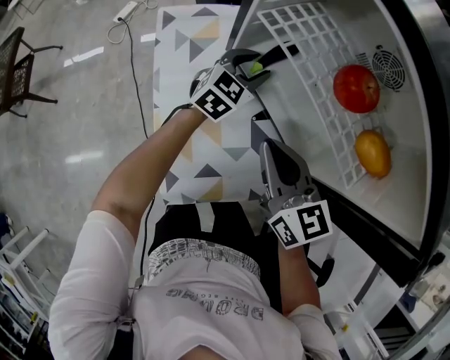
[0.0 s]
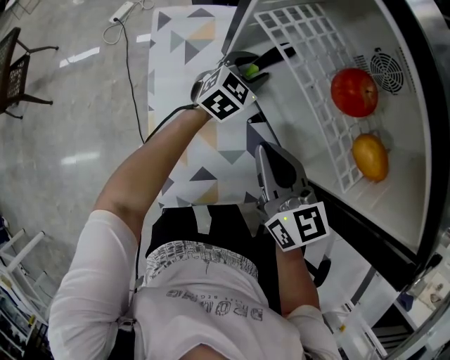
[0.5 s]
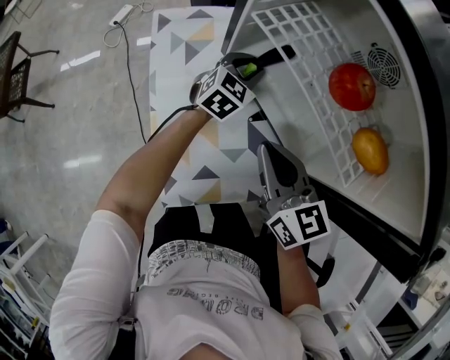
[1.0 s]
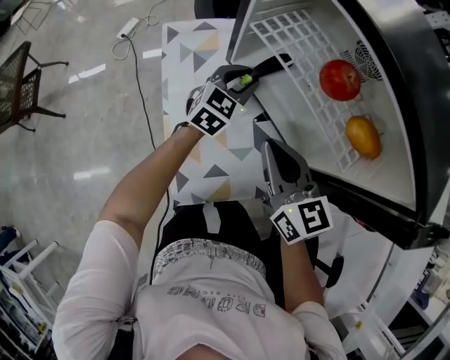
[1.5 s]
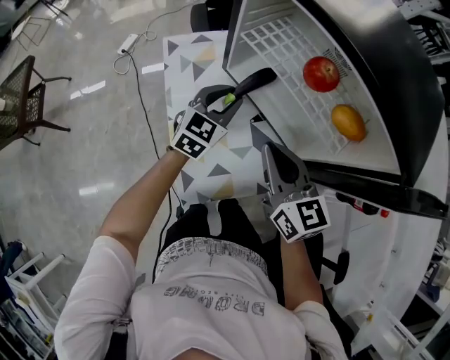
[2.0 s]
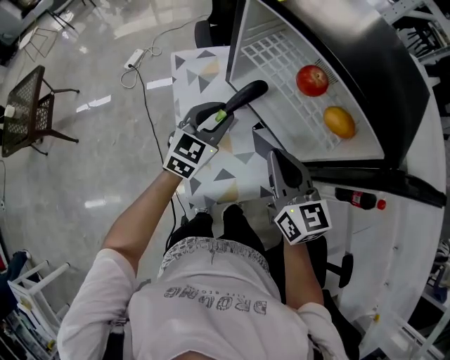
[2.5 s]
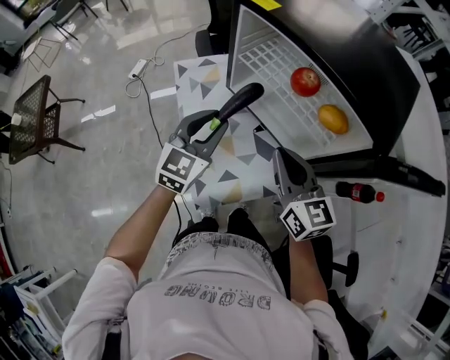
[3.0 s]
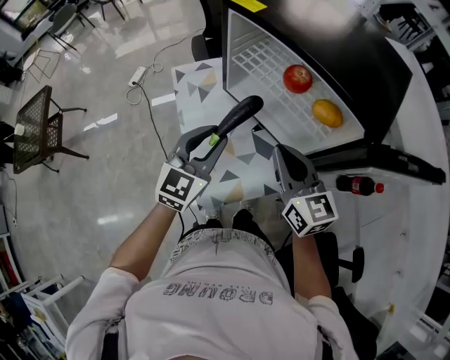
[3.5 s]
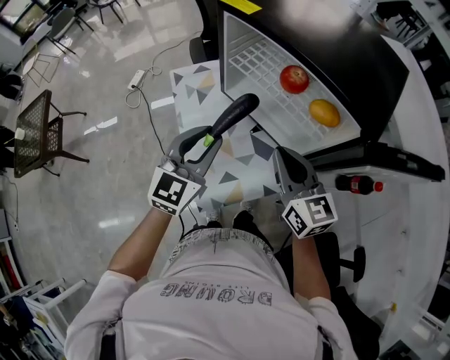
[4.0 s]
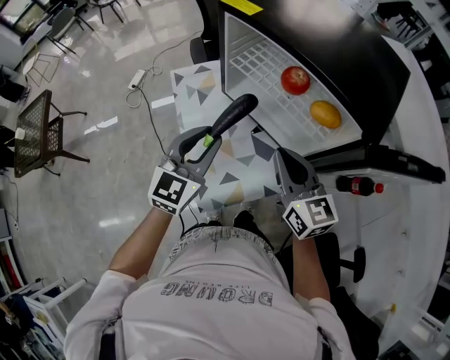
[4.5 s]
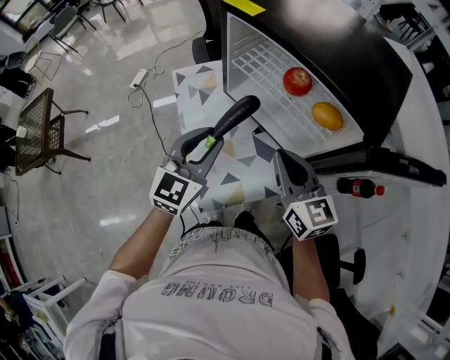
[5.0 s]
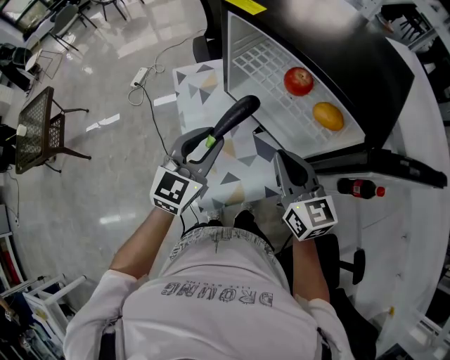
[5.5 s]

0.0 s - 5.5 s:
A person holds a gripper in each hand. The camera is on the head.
0.0 s - 2.0 s: The left gripper is displaced backward and upward by about 10 cm; the right gripper is displaced upward by about 5 cm.
2.0 s - 3.5 s: The left gripper goes approximately 20 cm upward and backward, while the right gripper goes approximately 5 cm upward.
3.5 s - 5.5 s: The grippers make only small movements.

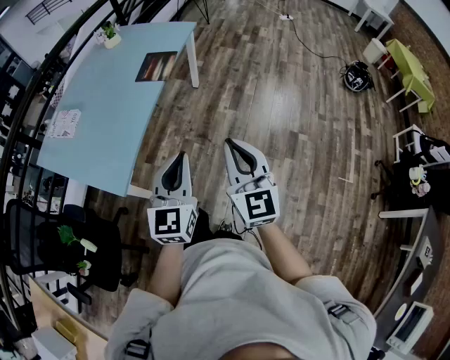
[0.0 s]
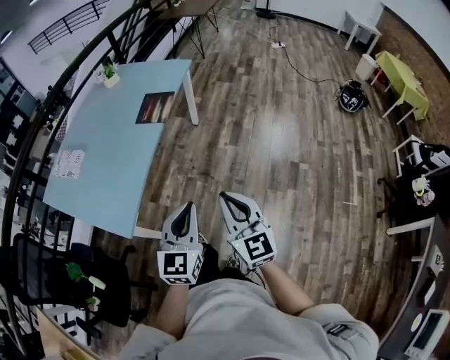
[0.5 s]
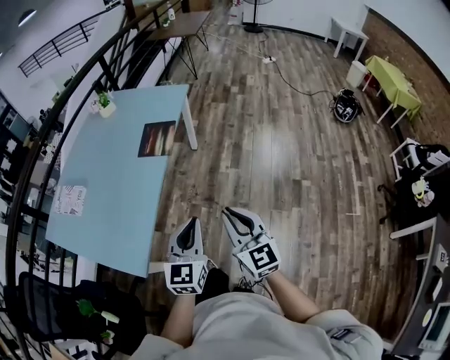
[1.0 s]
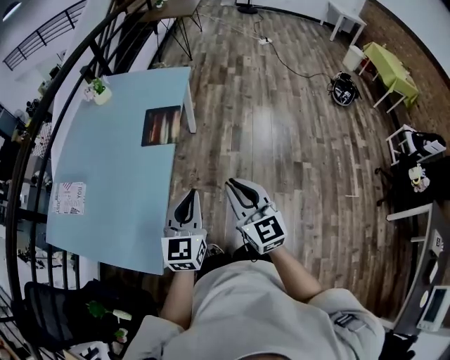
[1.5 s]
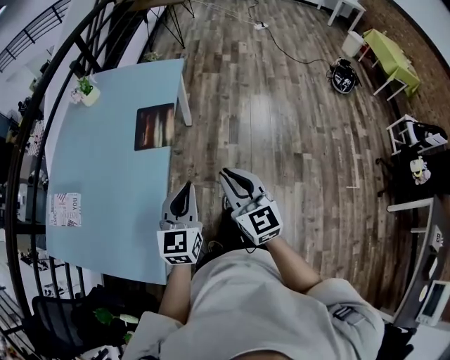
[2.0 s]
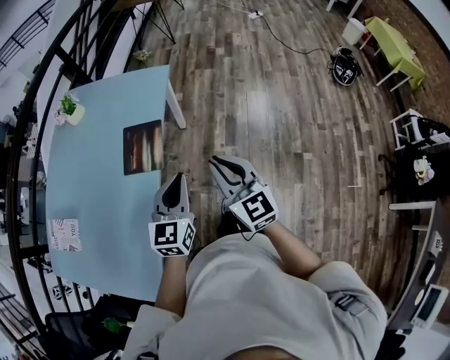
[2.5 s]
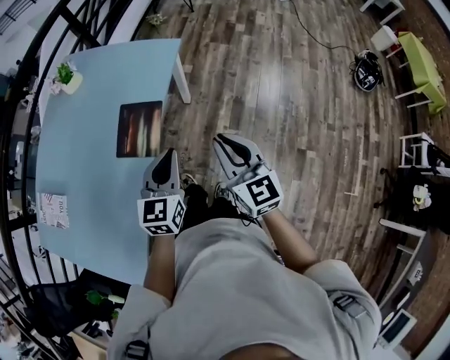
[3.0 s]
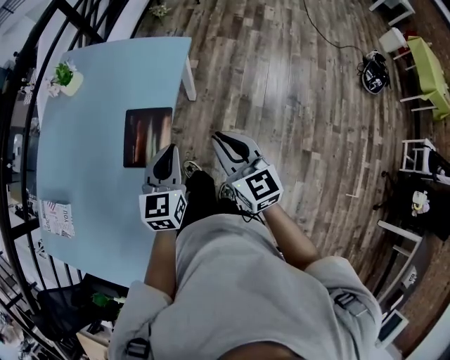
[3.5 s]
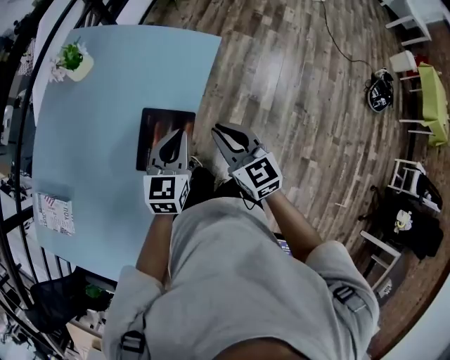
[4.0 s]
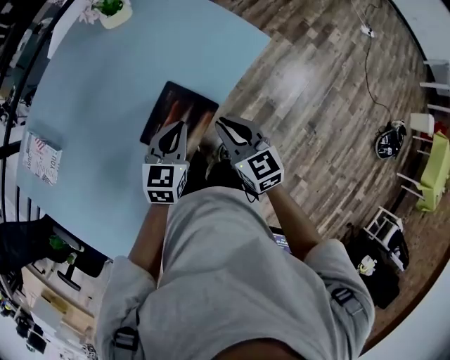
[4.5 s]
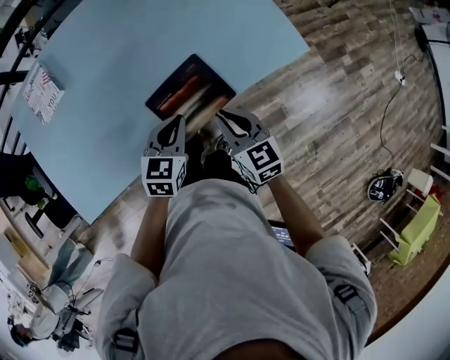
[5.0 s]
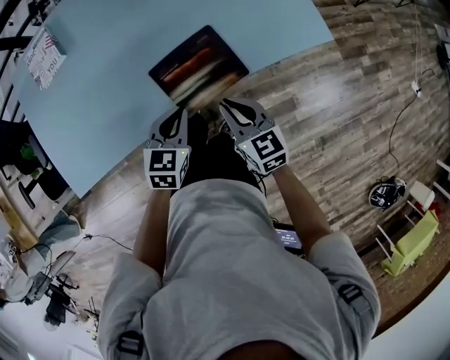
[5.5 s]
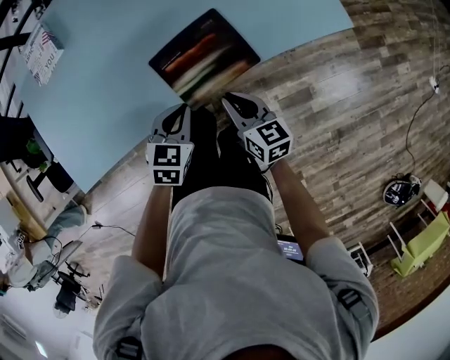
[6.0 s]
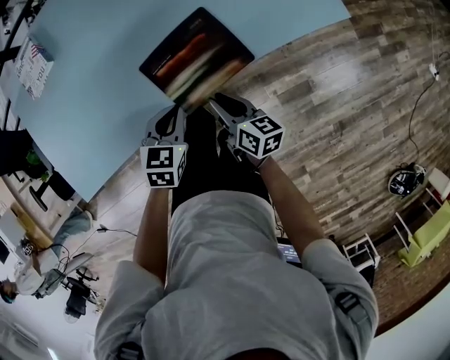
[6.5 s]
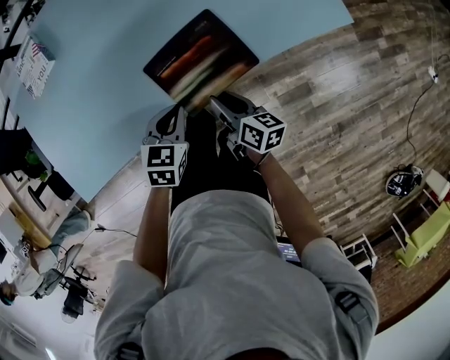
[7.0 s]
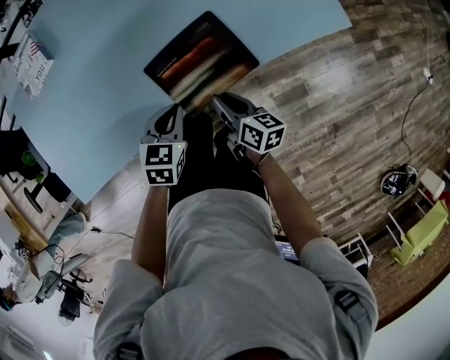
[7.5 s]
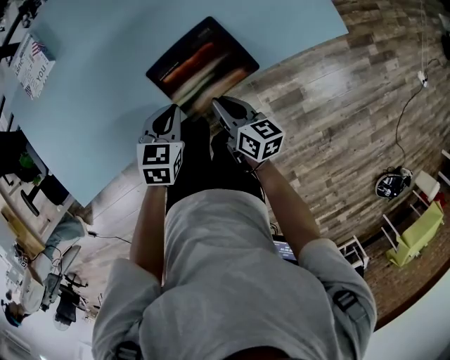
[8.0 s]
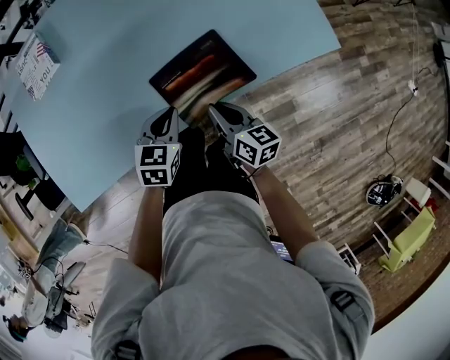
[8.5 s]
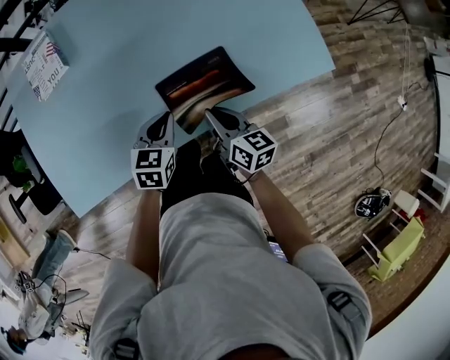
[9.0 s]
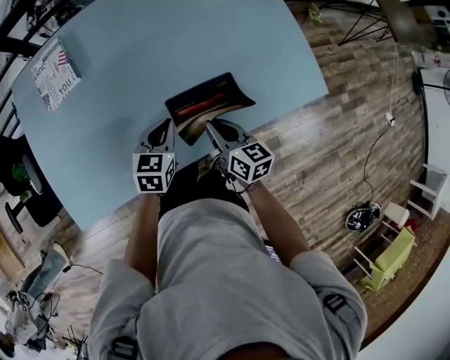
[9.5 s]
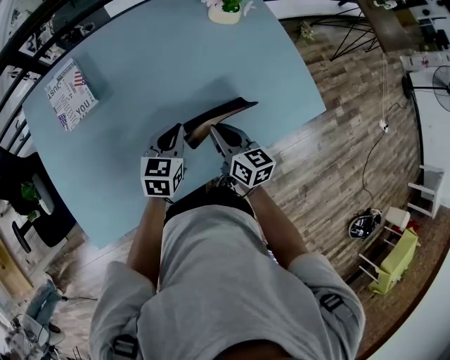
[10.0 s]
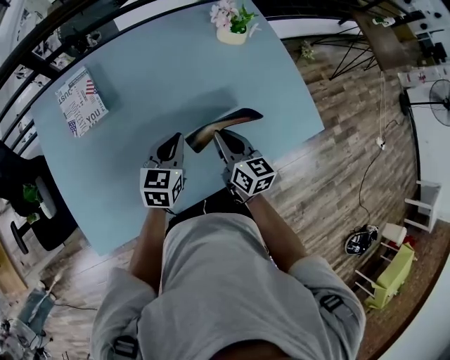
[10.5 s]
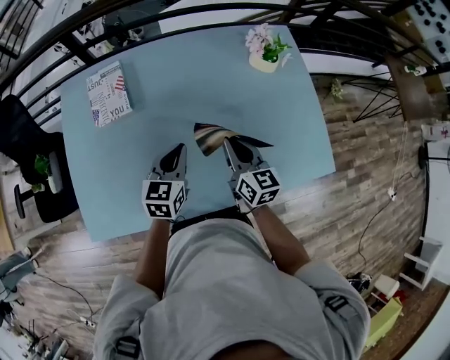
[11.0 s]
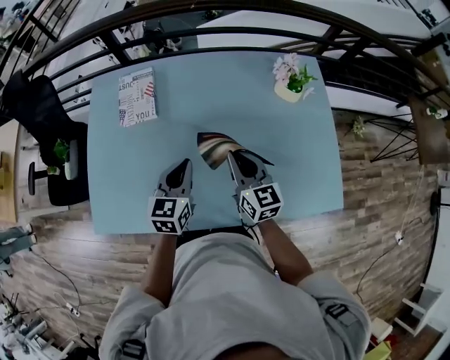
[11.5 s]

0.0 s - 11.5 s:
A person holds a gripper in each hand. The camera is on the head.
0.0 s - 2.0 s: The right gripper goes some 30 cm forward and to the left. Meanwhile the left gripper travels forward by roughly 25 cm.
2.0 s - 4.0 s: The two grippers travel together, forward, approximately 40 cm. The right gripper rotates some 20 degrees.
4.0 s - 6.0 s: Both grippers move downward, approximately 20 cm. The left gripper rotates some 40 degrees. Meanwhile the right gripper turns by some 50 degrees.
6.0 s - 7.5 s: The right gripper rotates roughly 20 degrees.
7.5 s - 9.5 s: The left gripper heads forward, to the left and upward, covering roughly 15 cm. Meanwhile the right gripper heads upward, forward and to the left, covering about 15 cm, and rotates approximately 20 degrees.
9.5 s - 11.5 s: The right gripper goes about 20 cm forward, upward and to the left, and swivels roughly 30 degrees, while the left gripper travels upward, to the left and forward by about 15 cm, and rotates approximately 30 degrees.

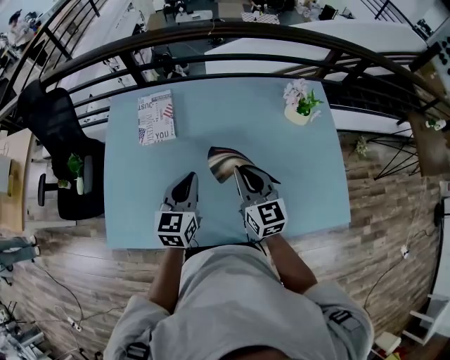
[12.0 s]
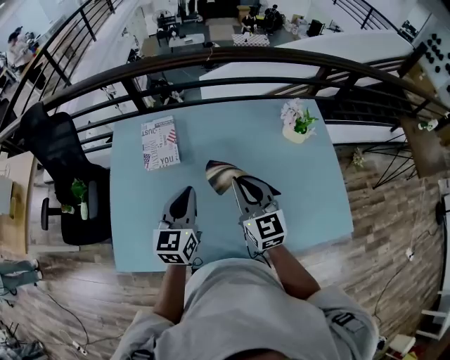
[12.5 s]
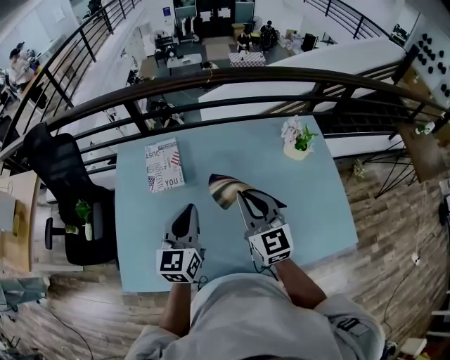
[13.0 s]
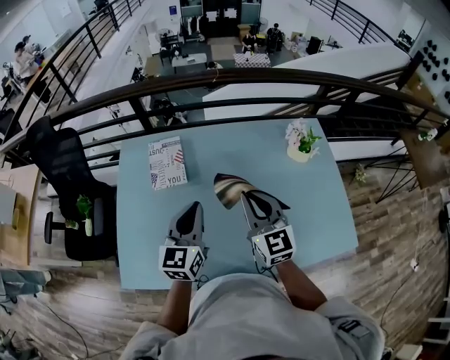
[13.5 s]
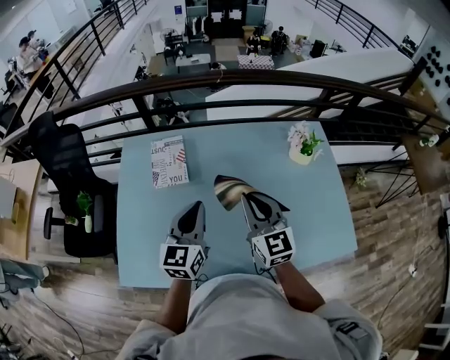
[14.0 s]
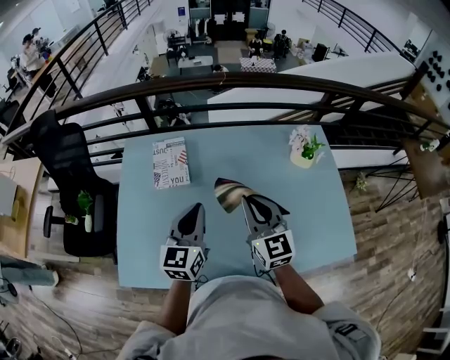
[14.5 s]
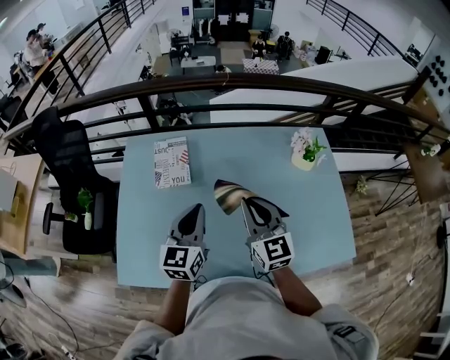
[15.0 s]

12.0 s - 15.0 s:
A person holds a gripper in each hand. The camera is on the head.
12.0 s - 13.5 s: Both grippers travel together upward, approximately 5 cm.
13.5 s - 15.0 s: Both grippers stay put.

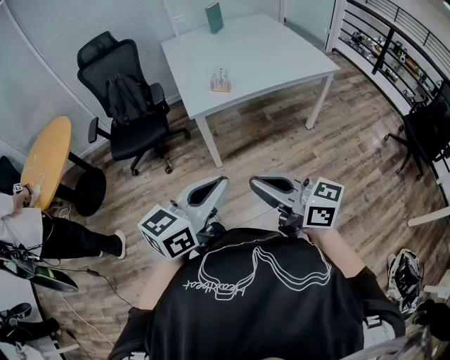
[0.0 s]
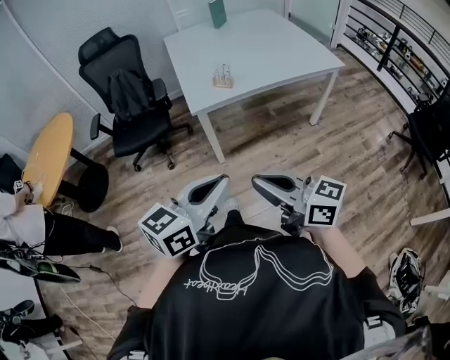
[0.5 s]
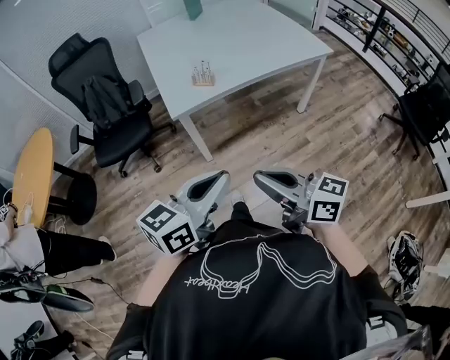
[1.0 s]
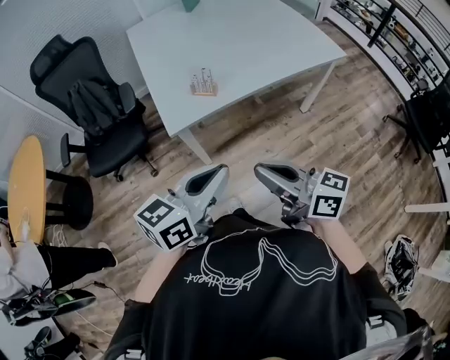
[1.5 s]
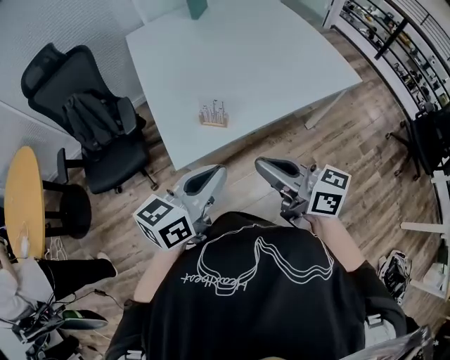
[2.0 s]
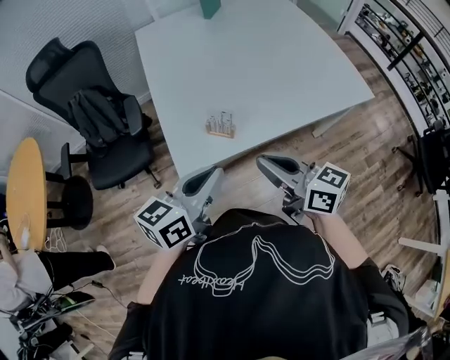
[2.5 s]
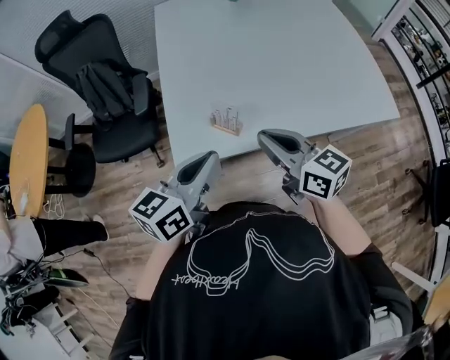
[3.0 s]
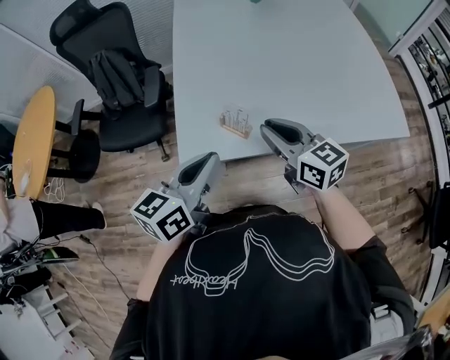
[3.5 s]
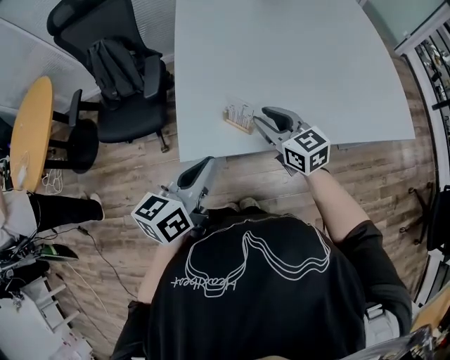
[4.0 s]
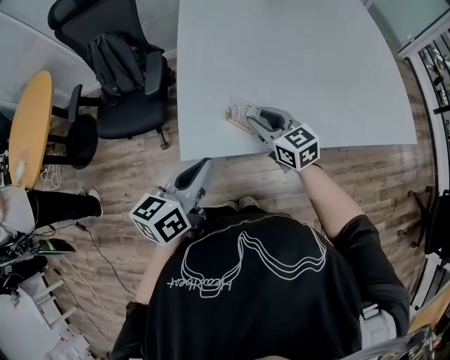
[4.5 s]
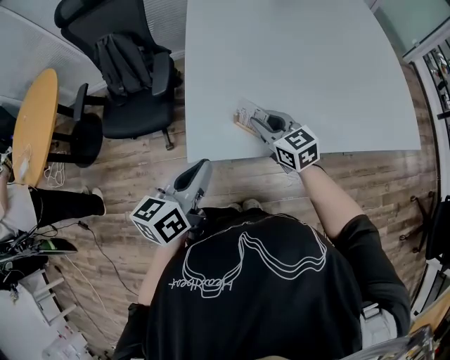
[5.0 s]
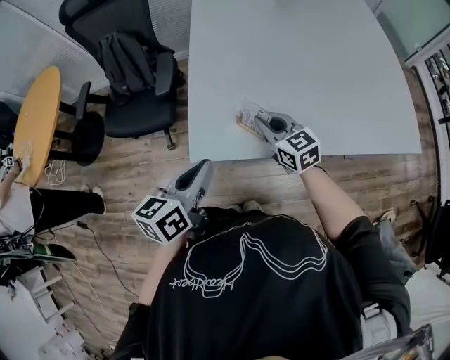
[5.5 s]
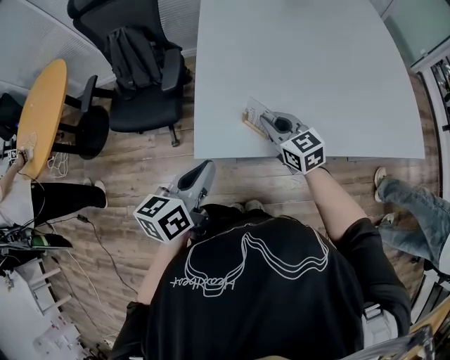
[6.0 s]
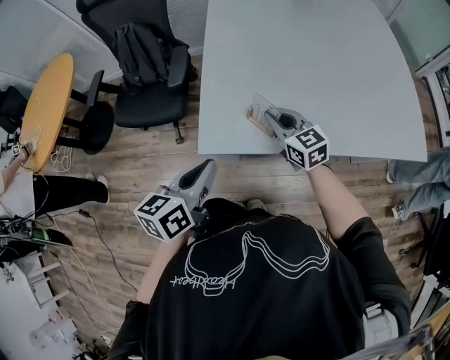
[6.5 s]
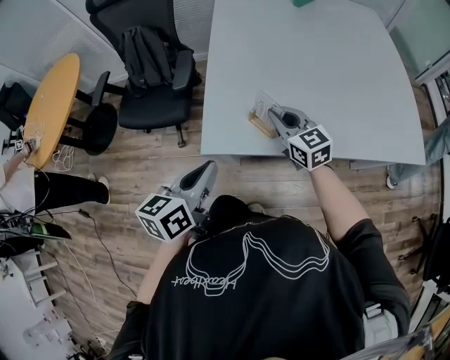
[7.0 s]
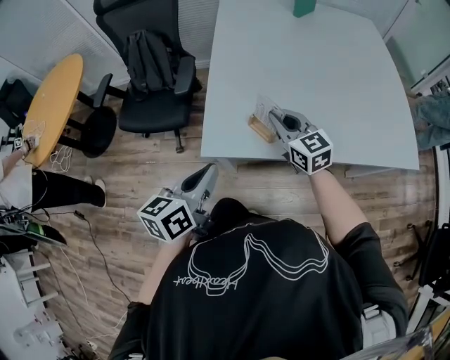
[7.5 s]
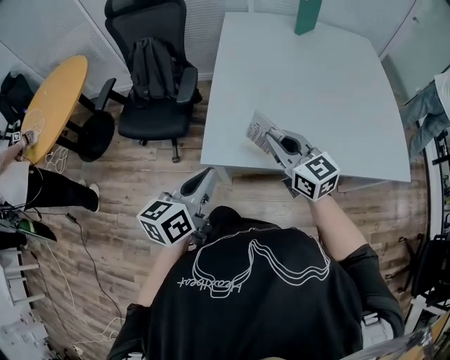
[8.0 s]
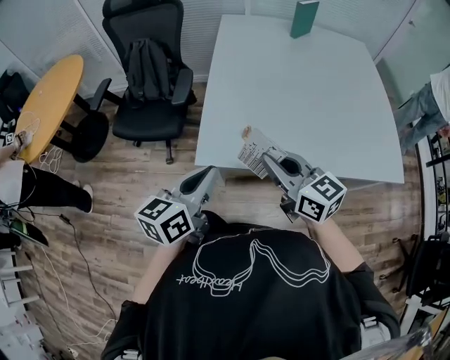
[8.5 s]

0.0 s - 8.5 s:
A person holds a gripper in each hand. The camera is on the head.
0.0 s - 2.0 s: The pair of grippers is taken forward, about 40 cm.
2.0 s - 4.0 s: The right gripper travels forward and downward by about 30 cm, swivels roughly 30 degrees, and opens, while the left gripper is displaced forward and downward by approximately 15 cm, and rotates approximately 30 degrees.
4.0 s - 6.5 s: The right gripper ends up approximately 5 cm from where it was, and closes; the left gripper heads to the left, covering some 5 cm.
6.5 s - 8.5 s: The left gripper moves upward, about 5 cm, while the right gripper moves upward and backward, approximately 20 cm.
